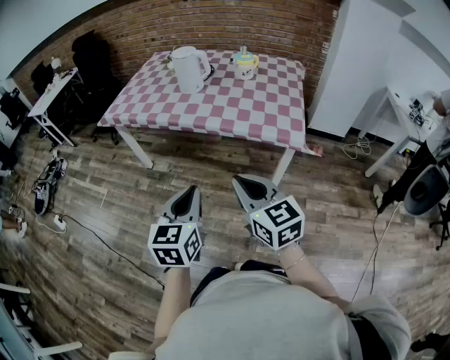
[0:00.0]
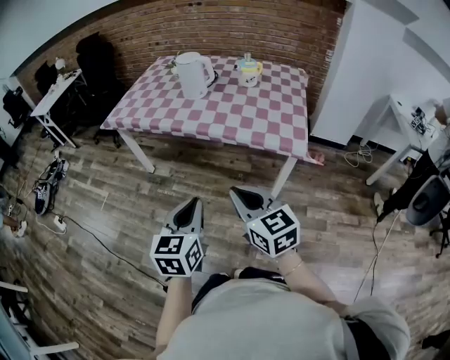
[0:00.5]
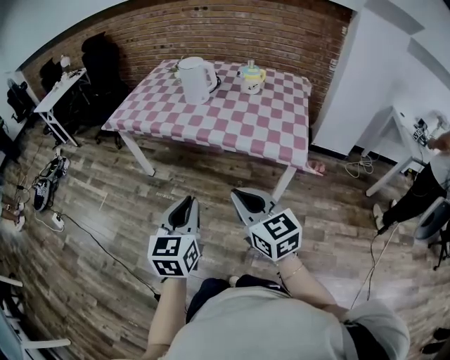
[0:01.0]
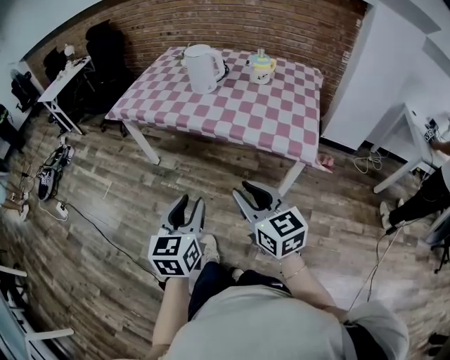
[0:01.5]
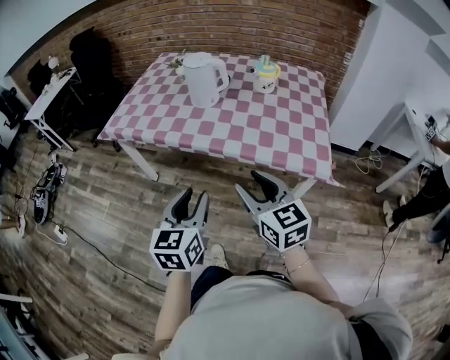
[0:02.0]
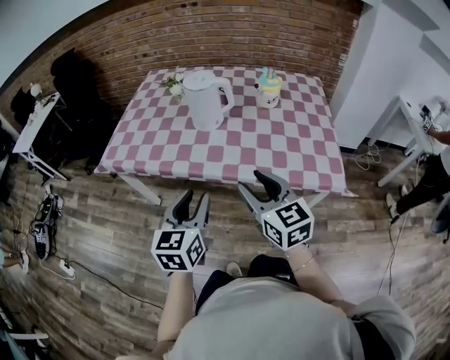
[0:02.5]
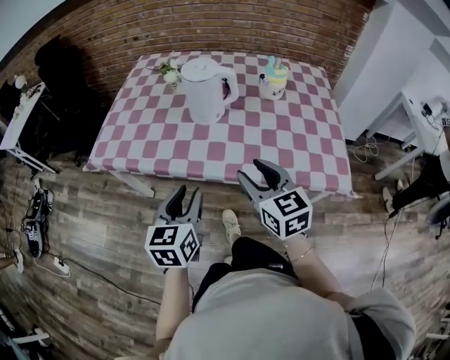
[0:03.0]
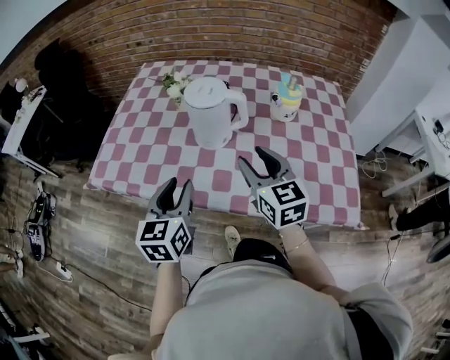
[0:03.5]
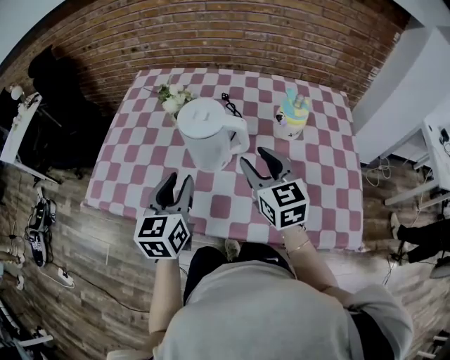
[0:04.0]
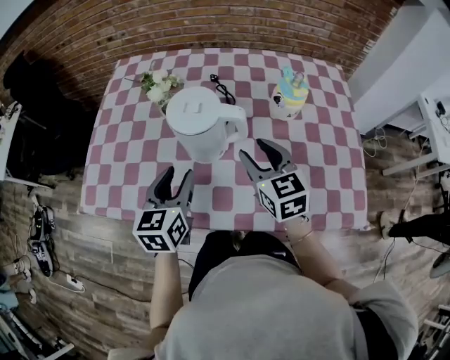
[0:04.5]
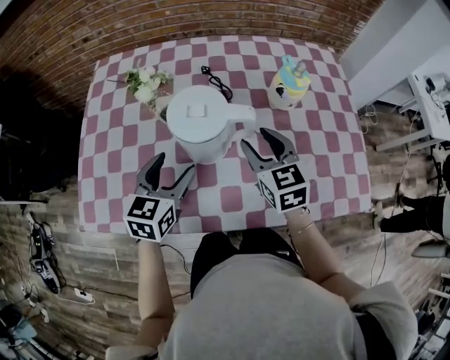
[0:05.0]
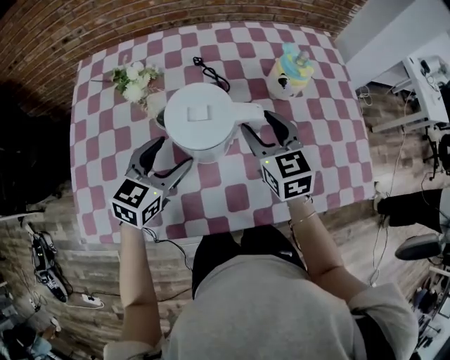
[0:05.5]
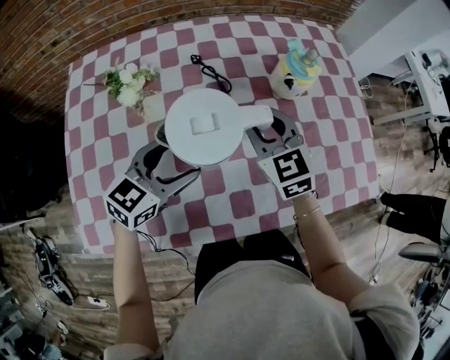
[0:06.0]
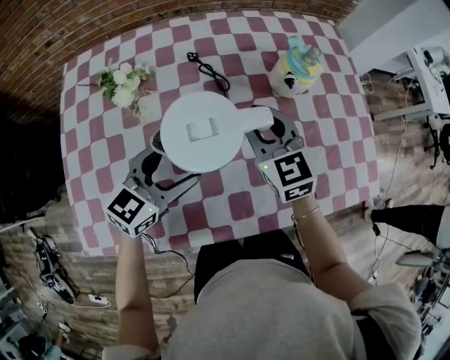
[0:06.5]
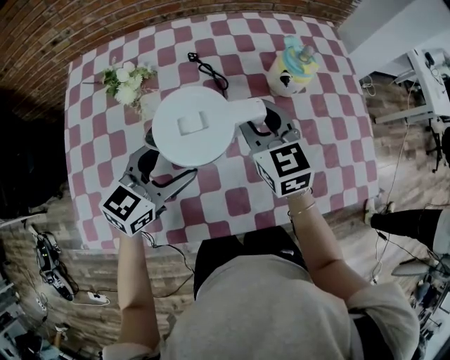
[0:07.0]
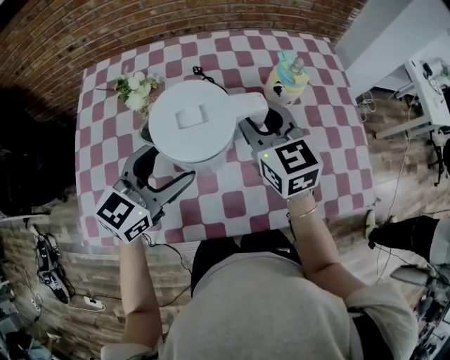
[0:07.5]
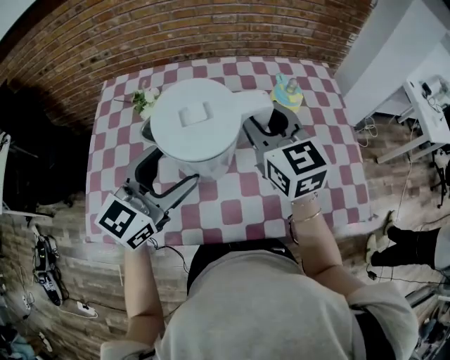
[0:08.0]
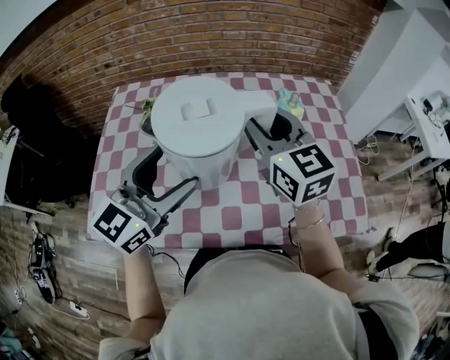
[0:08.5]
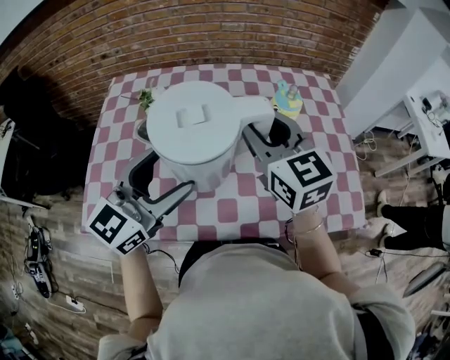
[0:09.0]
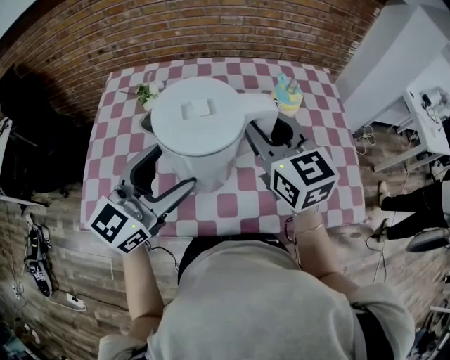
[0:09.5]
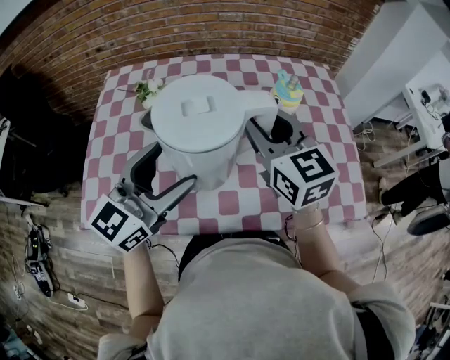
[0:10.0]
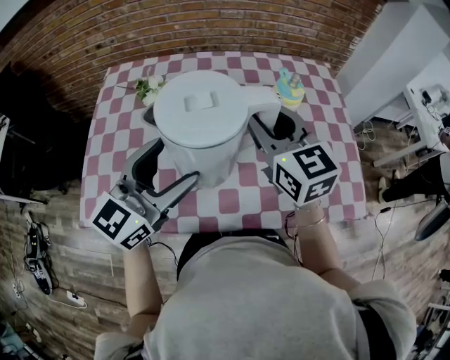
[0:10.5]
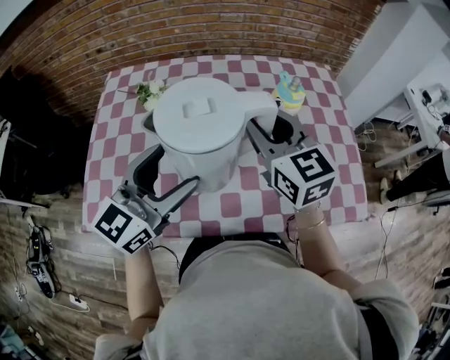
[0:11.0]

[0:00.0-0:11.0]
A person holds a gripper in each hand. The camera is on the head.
0:00.0 to 0:02.0: Both grippers travel together forward, roughly 15 cm. The right gripper opens up.
0:02.0 to 0:03.5: Both grippers travel together forward, approximately 35 cm.
0:03.5 to 0:05.5: The right gripper shifts by approximately 20 cm, and rotates approximately 20 degrees. The left gripper changes place by roughly 25 cm, turns by approximately 50 degrees, and opens up.
0:05.5 to 0:07.5: Both grippers move upward, roughly 10 cm. The right gripper closes up.
0:07.5 to 0:09.0: The grippers both shift upward and backward by approximately 10 cm.
0:09.0 to 0:11.0: The grippers move only a little.

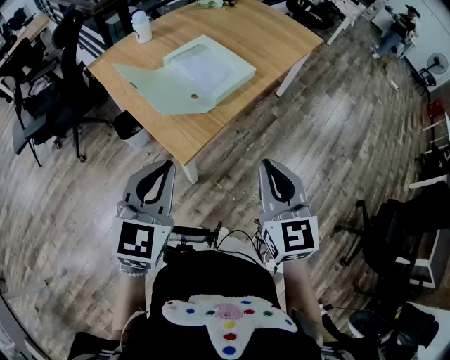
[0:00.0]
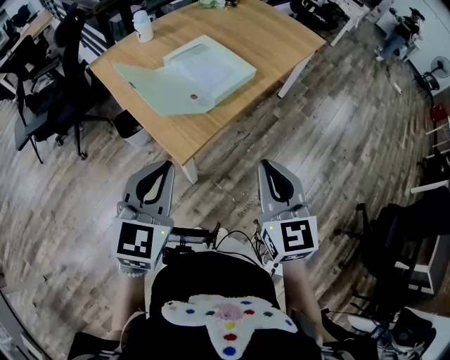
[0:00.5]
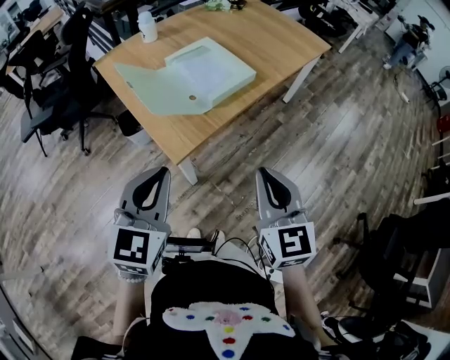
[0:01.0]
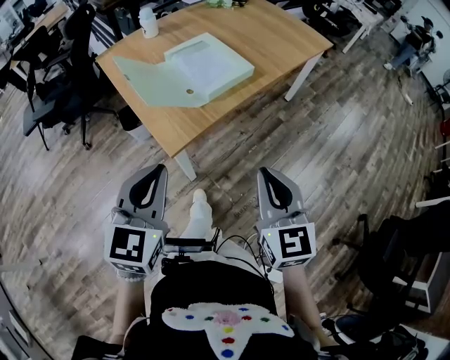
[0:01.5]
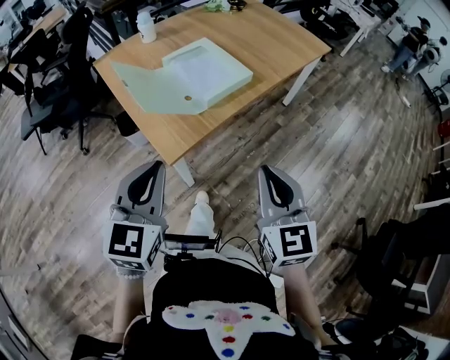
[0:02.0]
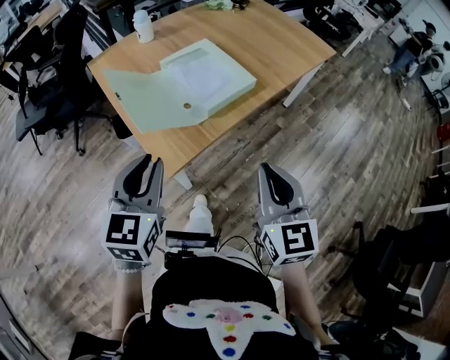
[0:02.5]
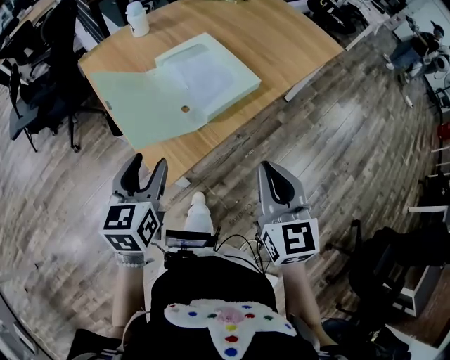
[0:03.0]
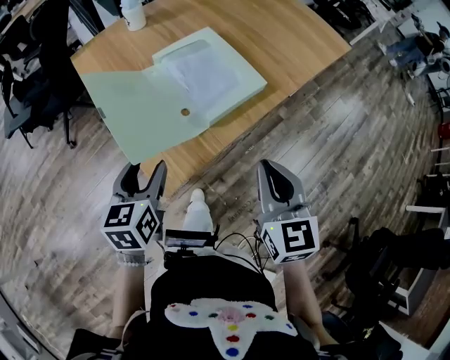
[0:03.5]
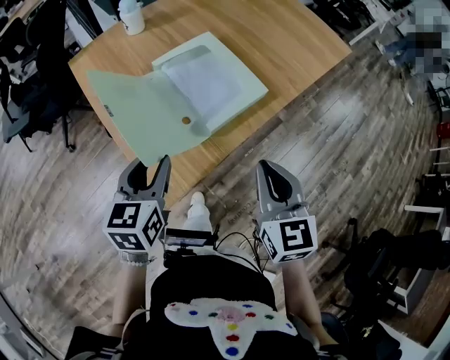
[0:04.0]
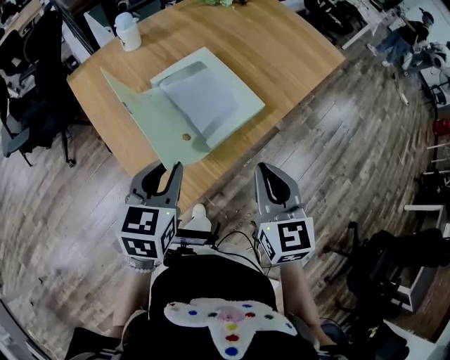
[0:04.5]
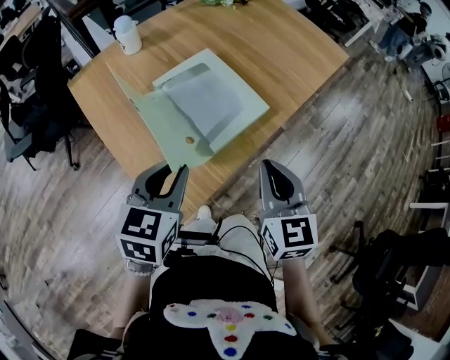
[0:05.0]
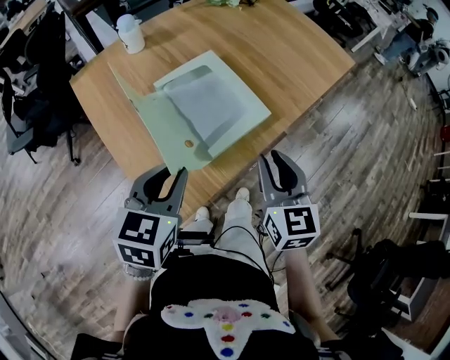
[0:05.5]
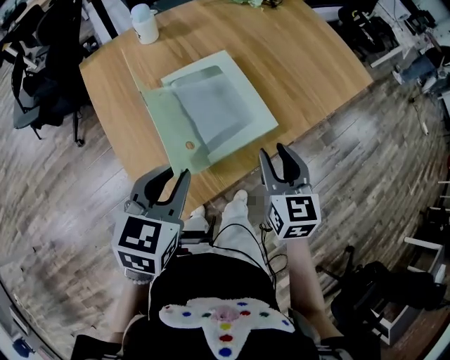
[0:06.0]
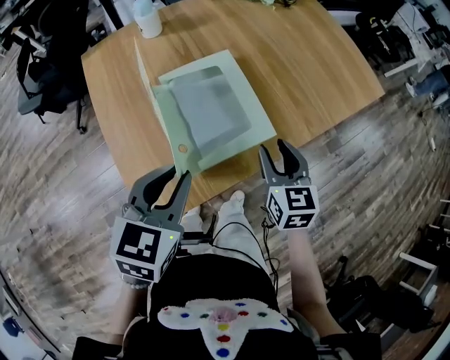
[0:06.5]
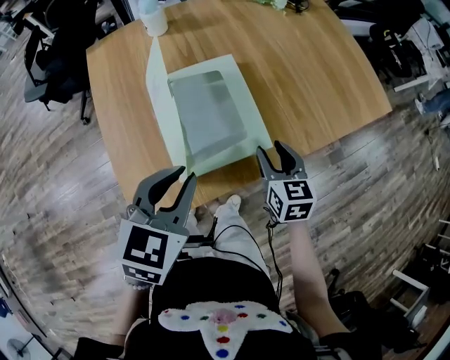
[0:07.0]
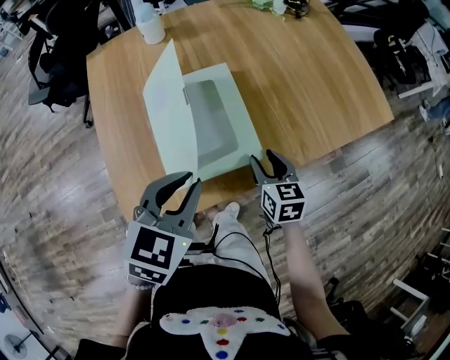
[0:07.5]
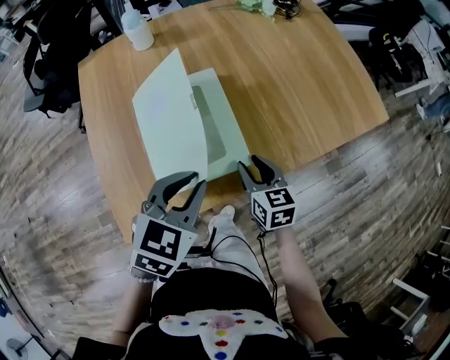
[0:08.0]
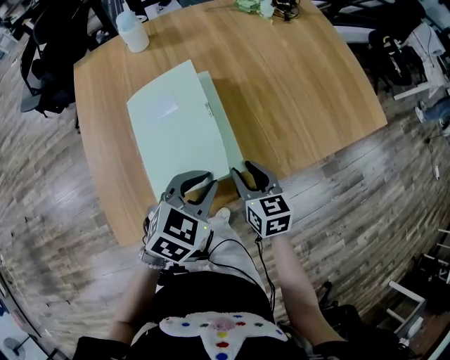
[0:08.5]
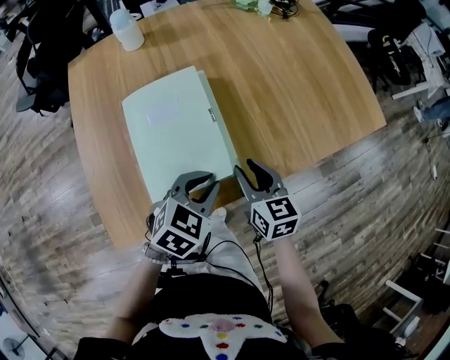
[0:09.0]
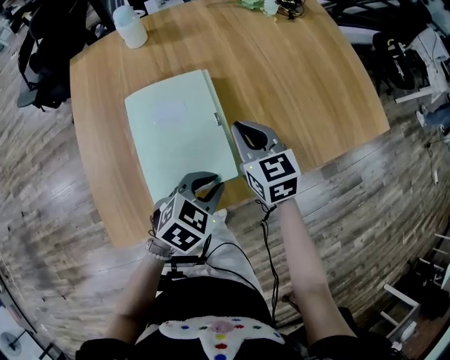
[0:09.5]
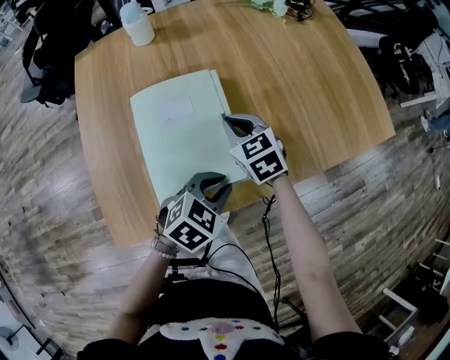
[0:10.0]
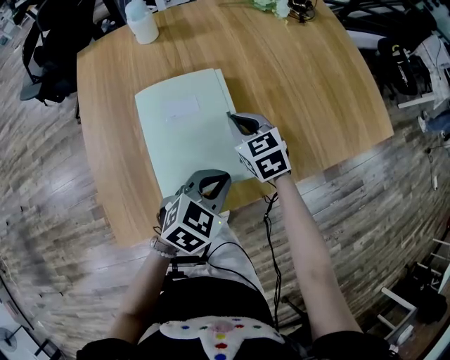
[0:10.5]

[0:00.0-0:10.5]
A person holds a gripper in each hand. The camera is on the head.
0:00.0 to 0:02.0: The grippers both shift to the right by roughly 5 cm.
0:02.0 to 0:04.0: The left gripper heads forward and downward, covering about 25 cm, turns by about 20 degrees, and opens up. Meanwhile the right gripper travels forward by some 20 cm.
0:04.0 to 0:06.5: The left gripper shifts about 15 cm to the right and forward, and closes. Meanwhile the right gripper moves forward, some 20 cm, and opens.
0:06.5 to 0:08.5: The left gripper goes roughly 20 cm to the right, downward and forward. Meanwhile the right gripper is displaced downward and forward by roughly 10 cm, and turns by about 20 degrees.
0:08.5 to 0:10.5: The right gripper shifts roughly 15 cm forward and to the left, swivels some 30 degrees, and closes up.

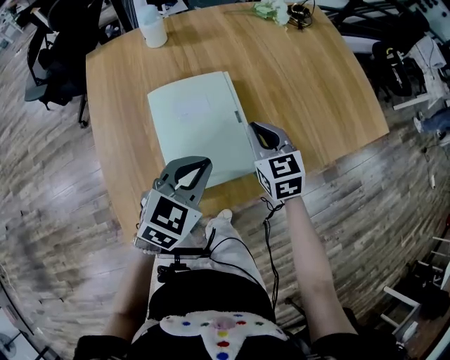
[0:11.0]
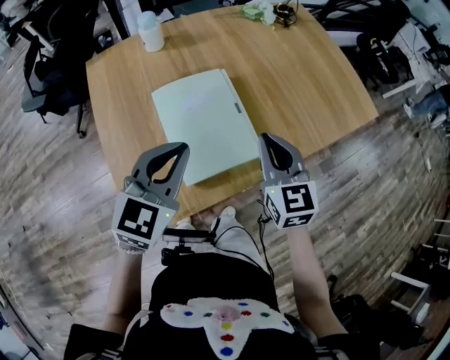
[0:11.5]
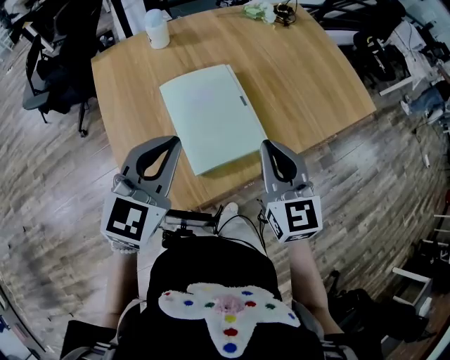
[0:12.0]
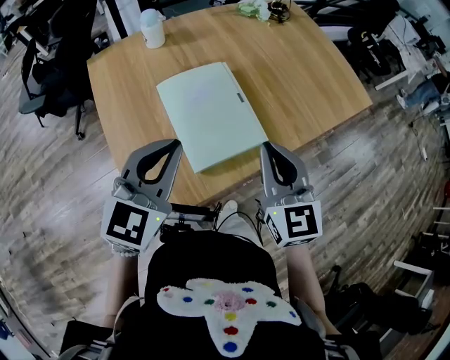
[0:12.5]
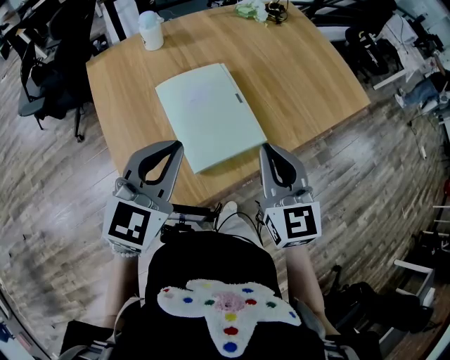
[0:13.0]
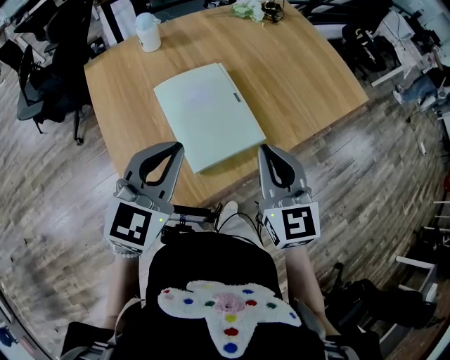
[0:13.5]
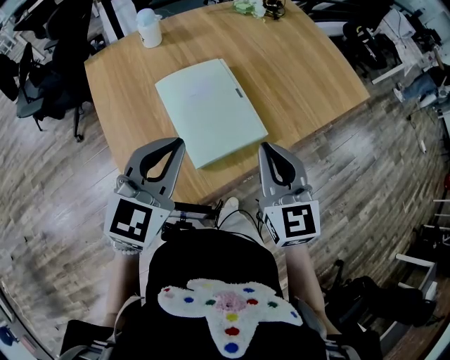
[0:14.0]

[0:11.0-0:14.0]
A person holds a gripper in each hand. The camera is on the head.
0:11.0 to 0:12.5: The left gripper travels upward, to the left and backward by approximately 20 cm, while the right gripper is displaced backward and upward by some 25 cm, and turns by approximately 20 degrees.
0:12.5 to 0:14.0: There are only small adjustments of the grippers.

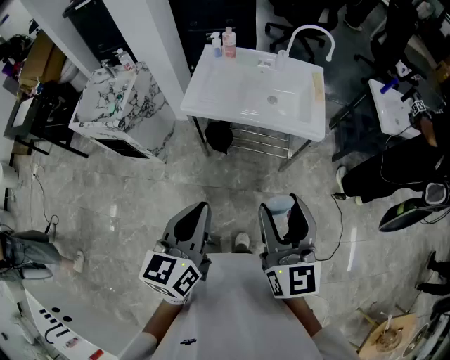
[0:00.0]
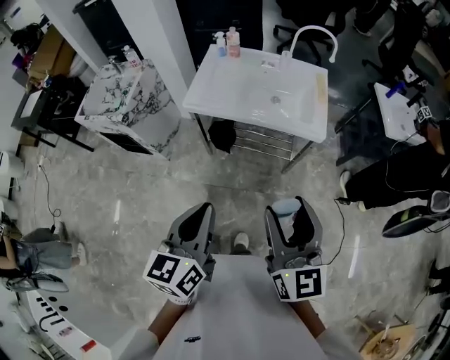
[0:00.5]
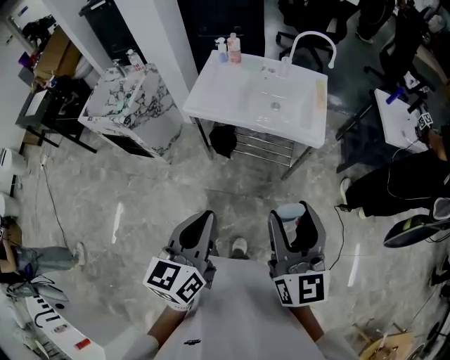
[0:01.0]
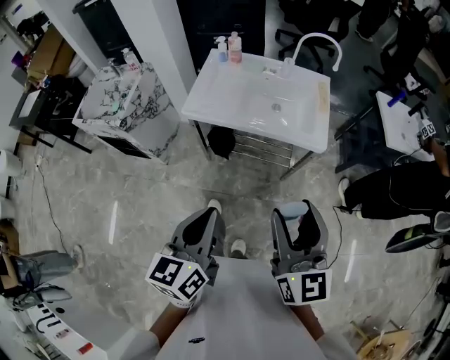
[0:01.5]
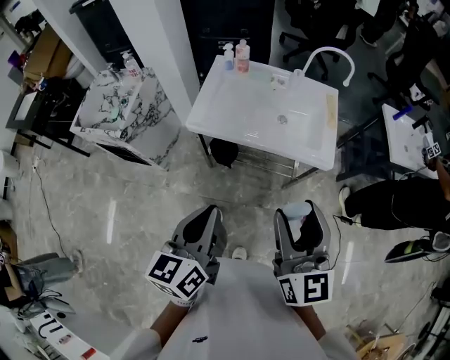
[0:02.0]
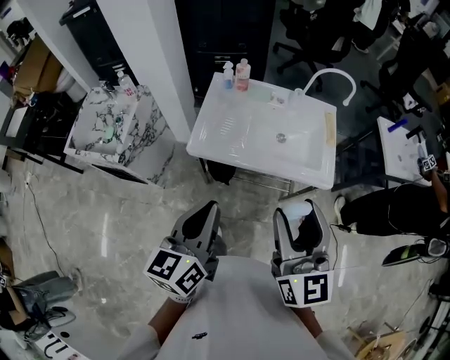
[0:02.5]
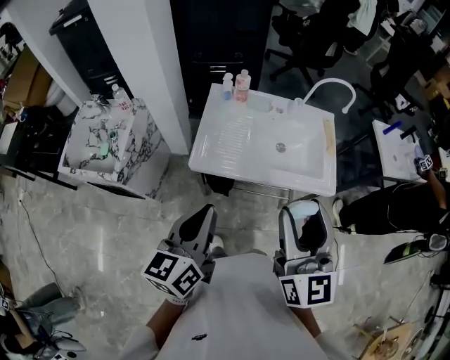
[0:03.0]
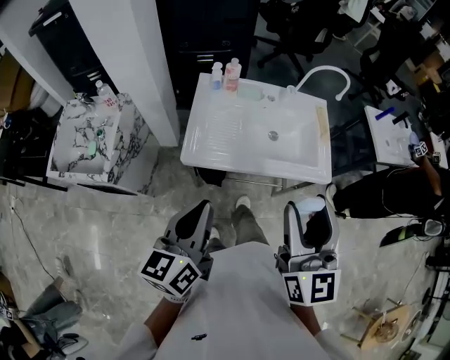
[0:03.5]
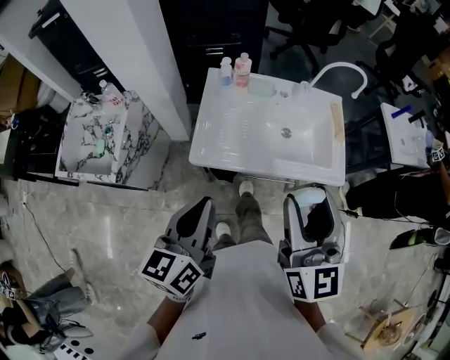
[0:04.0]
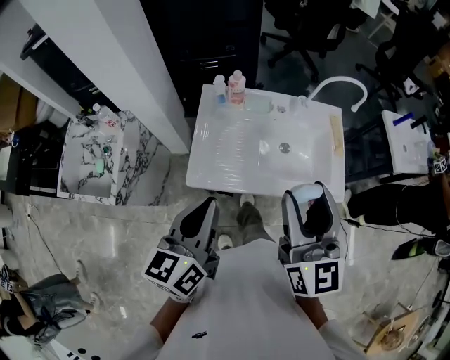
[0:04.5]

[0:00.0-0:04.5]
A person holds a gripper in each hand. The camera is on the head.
0:00.0 to 0:02.0: Both grippers travel together forward, roughly 10 cm.
0:02.0 to 0:04.5: Both grippers move forward and to the left, roughly 25 cm.
